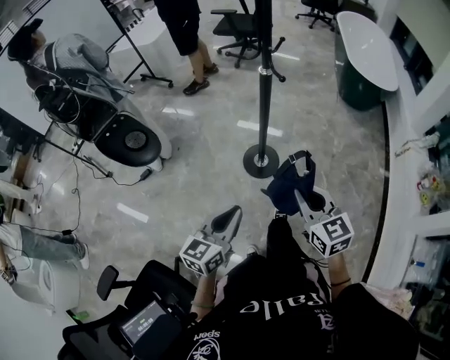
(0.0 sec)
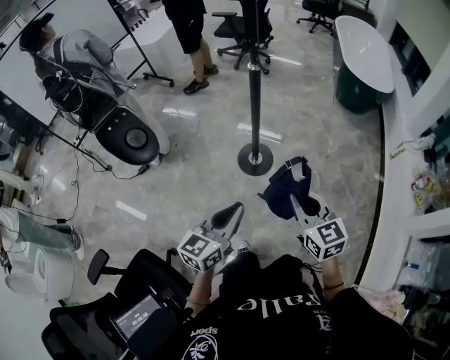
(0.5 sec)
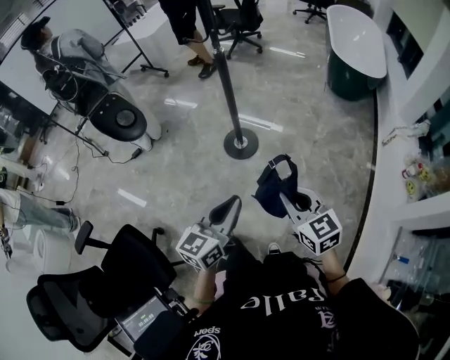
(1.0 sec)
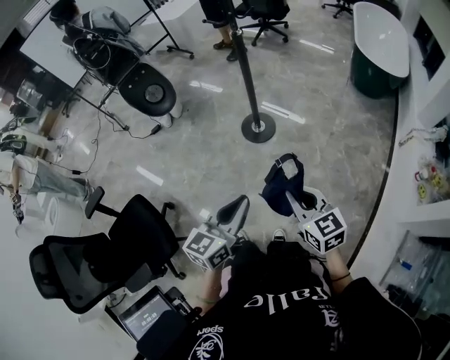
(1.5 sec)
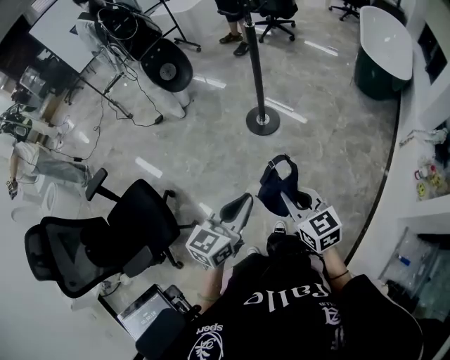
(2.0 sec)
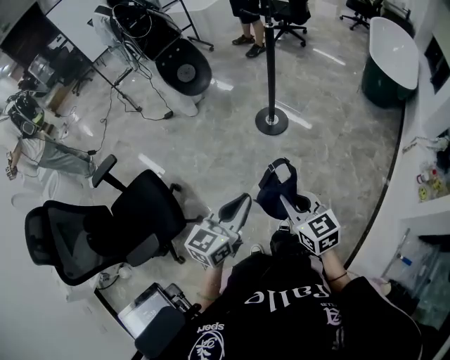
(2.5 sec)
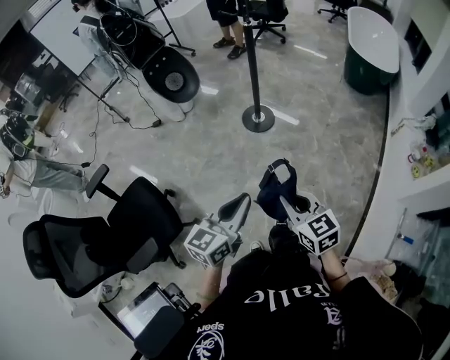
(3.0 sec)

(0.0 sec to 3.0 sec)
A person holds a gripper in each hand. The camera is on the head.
0.0 sec - 1.5 sec: The grippers both shift backward and to the right by approximately 35 cm.
1.5 sec - 3.0 sec: The two grippers go approximately 15 cm backward and to the left.

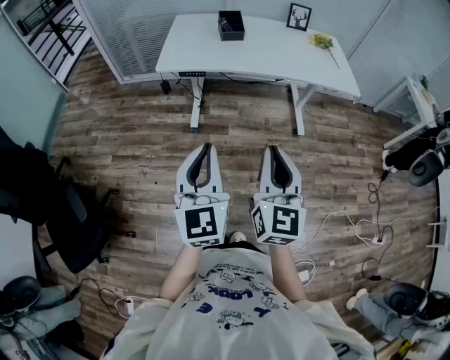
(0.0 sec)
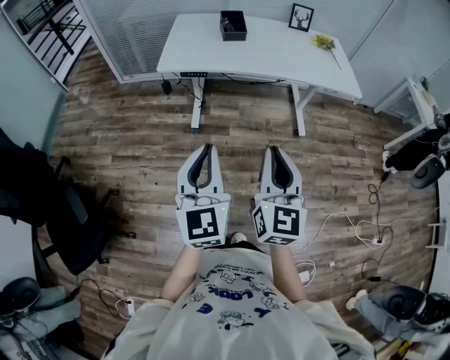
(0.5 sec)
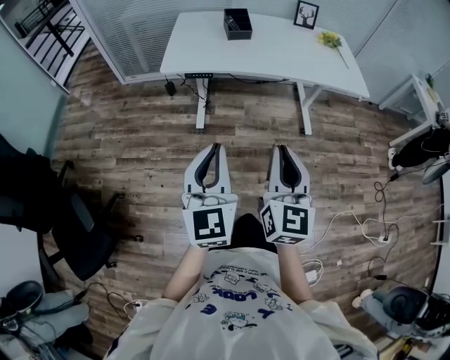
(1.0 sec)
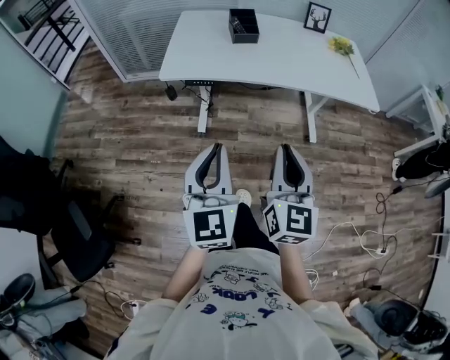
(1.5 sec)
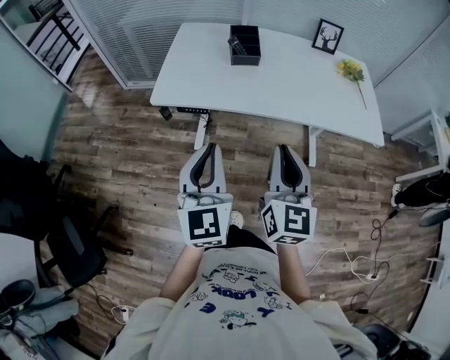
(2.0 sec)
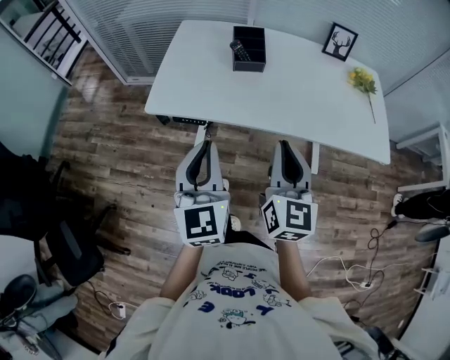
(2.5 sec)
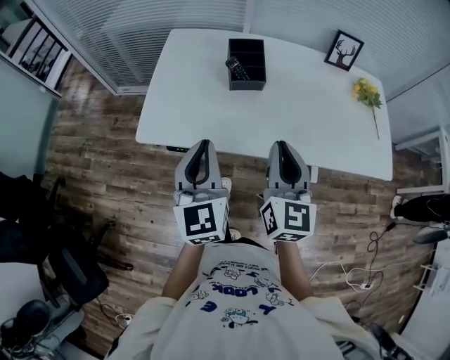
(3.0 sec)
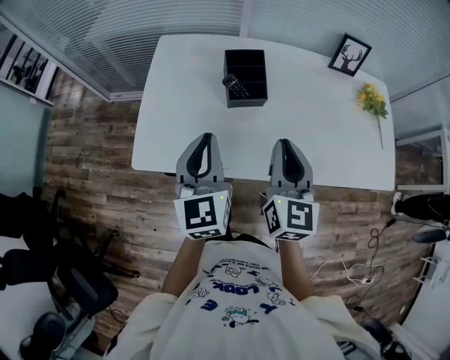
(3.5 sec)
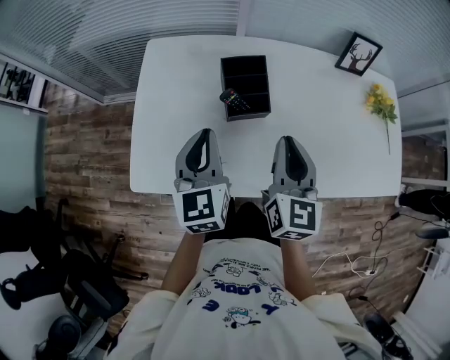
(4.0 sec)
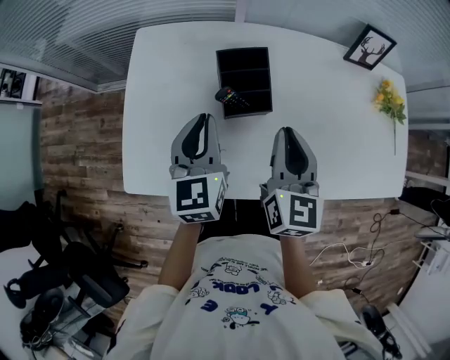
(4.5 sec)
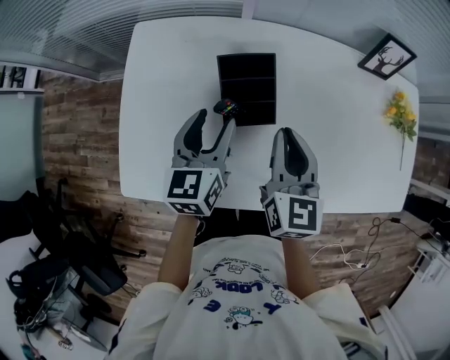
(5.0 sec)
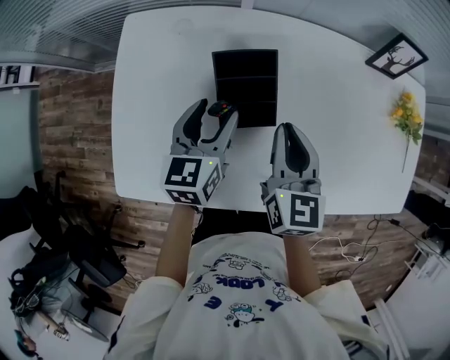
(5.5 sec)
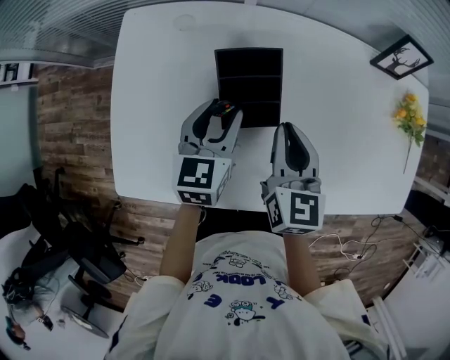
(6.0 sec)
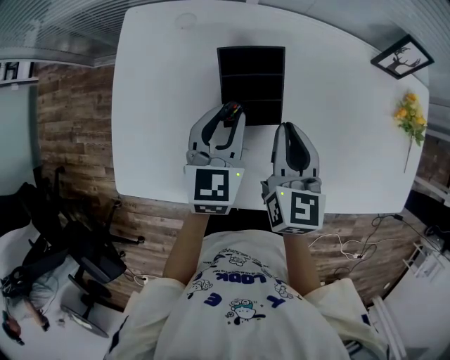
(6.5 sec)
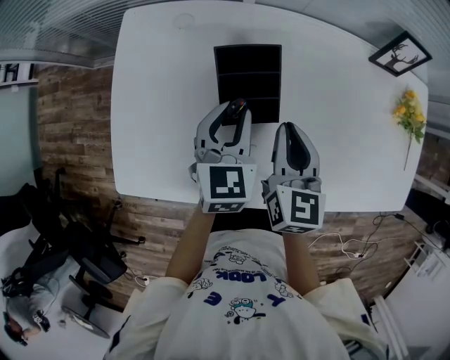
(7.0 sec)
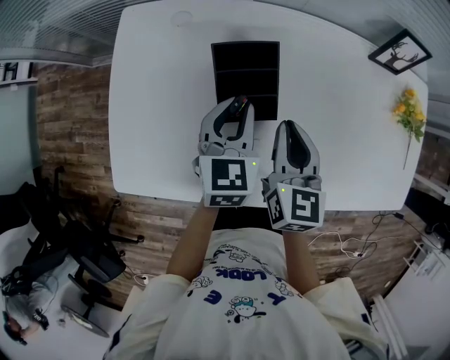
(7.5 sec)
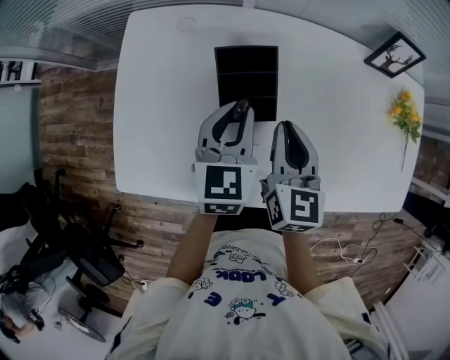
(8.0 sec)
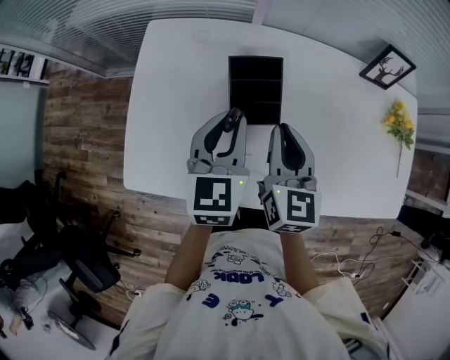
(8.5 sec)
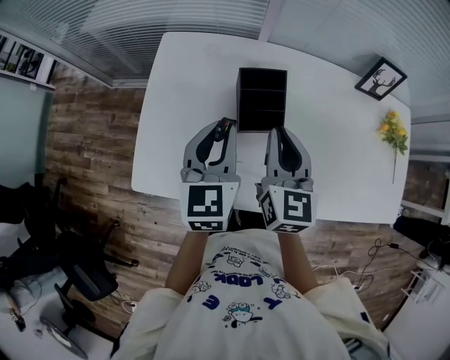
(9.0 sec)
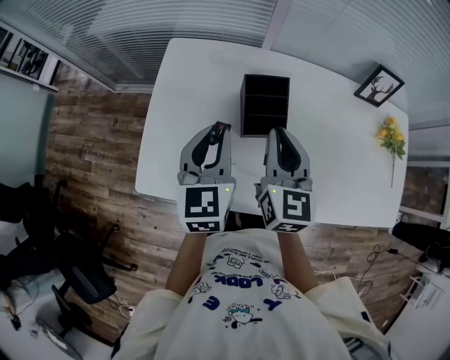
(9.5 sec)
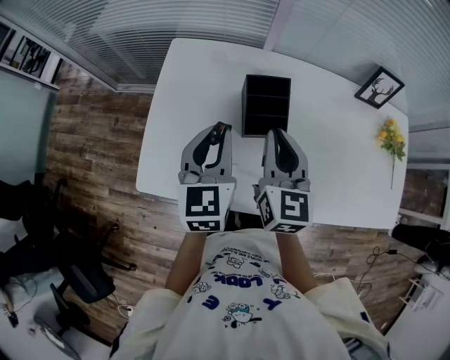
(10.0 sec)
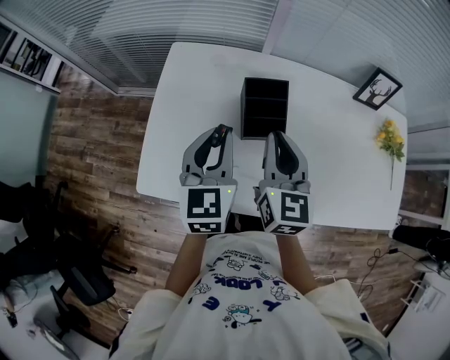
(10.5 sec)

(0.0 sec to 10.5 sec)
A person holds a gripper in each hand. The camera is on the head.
0.0 sec - 2.0 sec: Both grippers travel together forward, approximately 30 cm.
2.0 sec - 4.0 sec: The two grippers travel together, forward, approximately 50 cm.
4.0 sec - 6.5 sec: The left gripper travels forward, downward and to the right by roughly 20 cm, and opens, then closes again; the right gripper moves forward and downward, roughly 15 cm.
6.5 sec - 8.5 sec: The right gripper goes some 5 cm upward. Meanwhile the left gripper heads upward, covering about 10 cm.
8.5 sec - 10.5 sec: The left gripper shifts approximately 5 cm to the left. The right gripper goes some 5 cm upward.

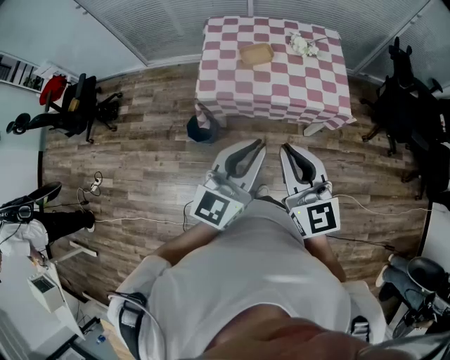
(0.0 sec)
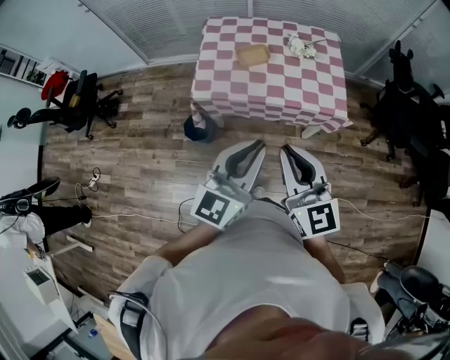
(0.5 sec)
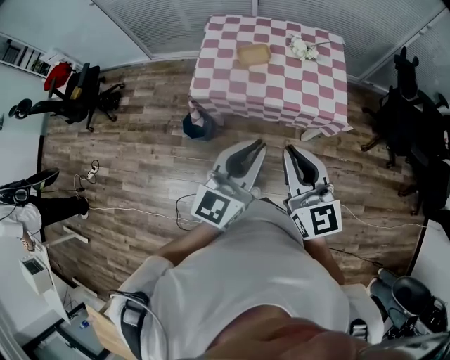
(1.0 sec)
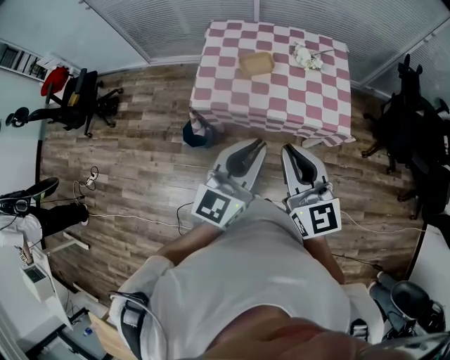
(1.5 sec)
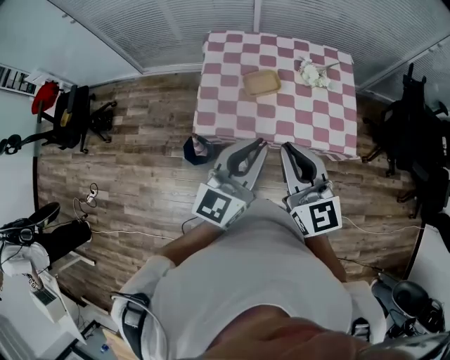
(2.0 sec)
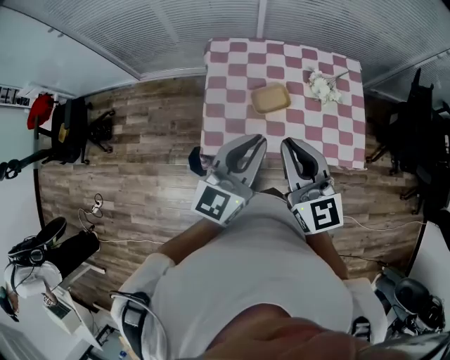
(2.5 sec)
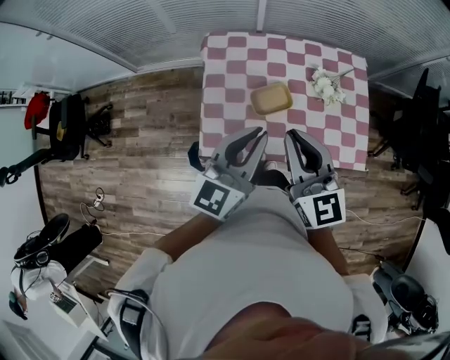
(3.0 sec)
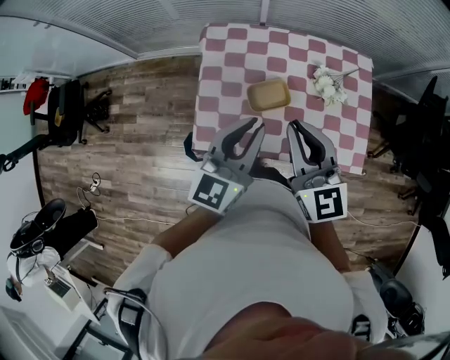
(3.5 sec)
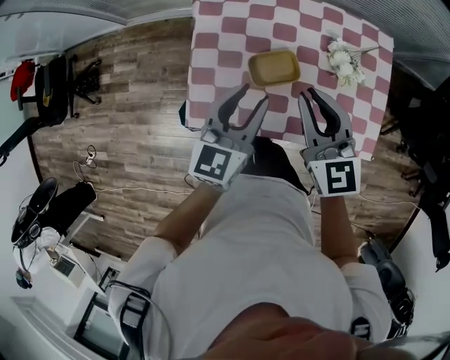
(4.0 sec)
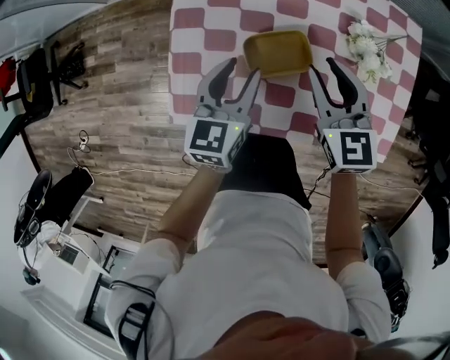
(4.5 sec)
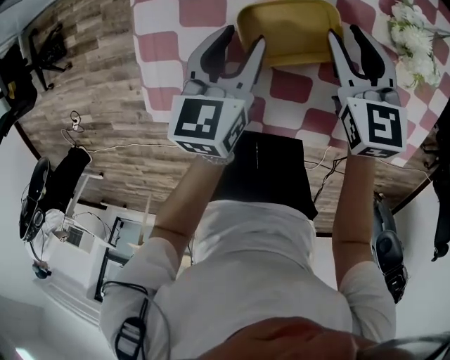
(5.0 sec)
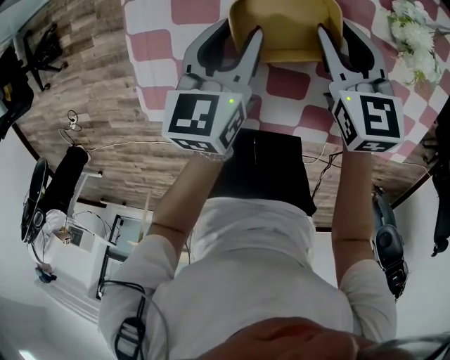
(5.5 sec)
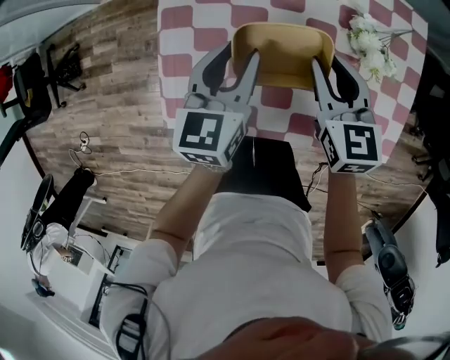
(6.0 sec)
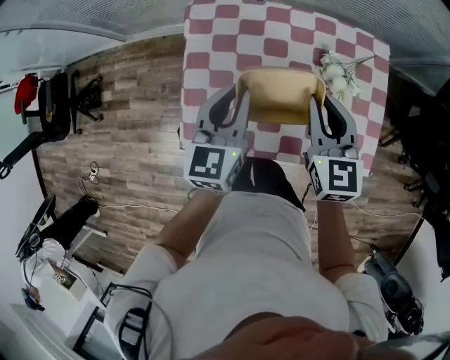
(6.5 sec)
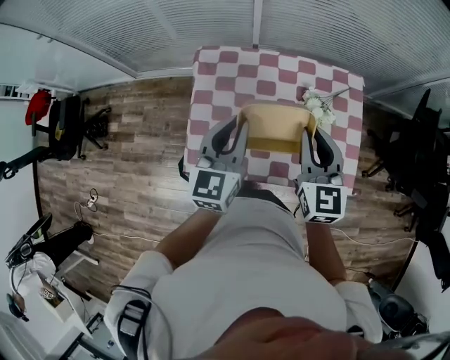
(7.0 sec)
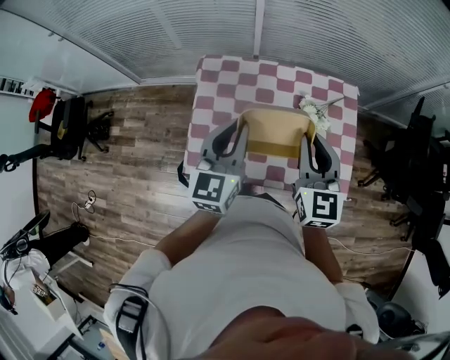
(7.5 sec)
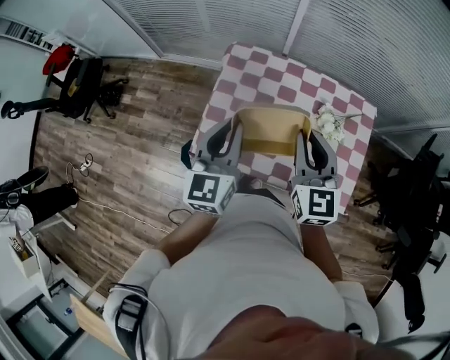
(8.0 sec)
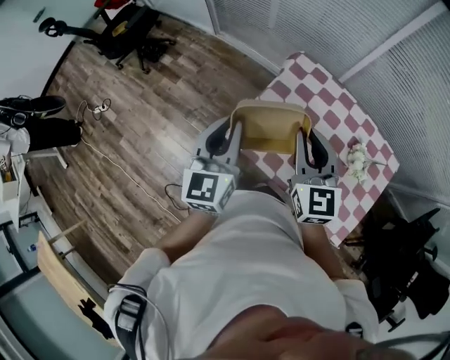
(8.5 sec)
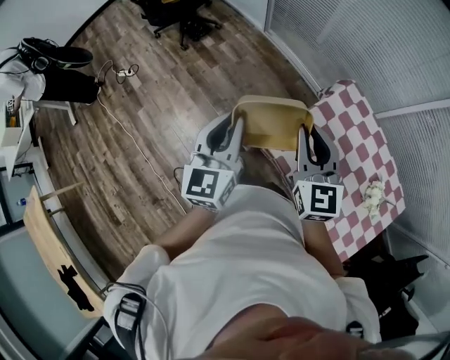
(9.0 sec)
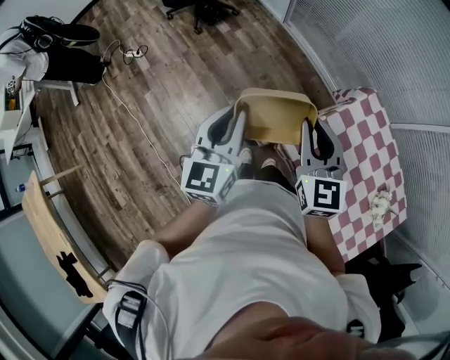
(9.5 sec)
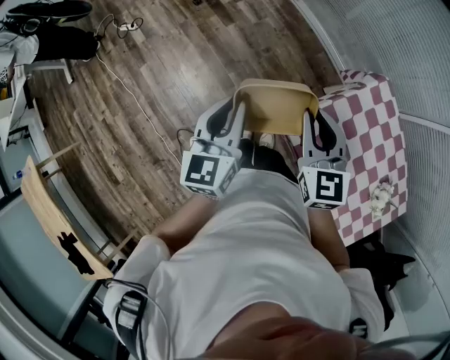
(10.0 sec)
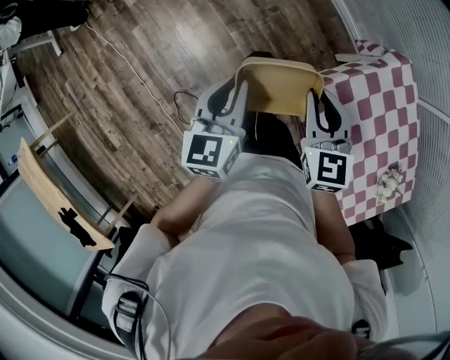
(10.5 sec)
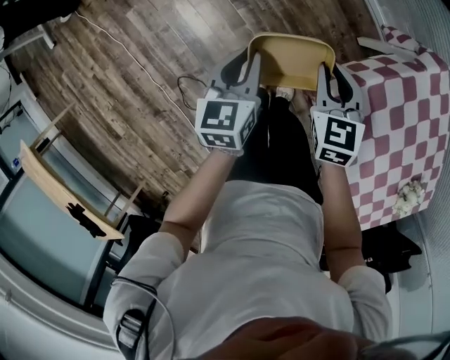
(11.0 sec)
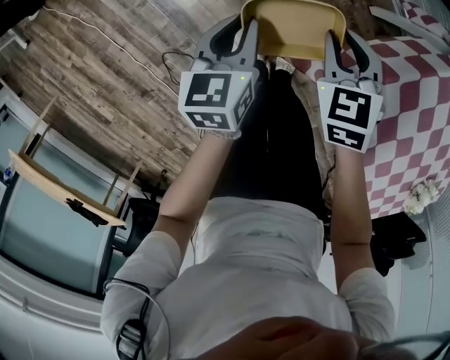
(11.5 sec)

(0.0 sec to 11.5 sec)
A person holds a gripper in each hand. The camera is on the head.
0.0 sec - 2.0 sec: The two grippers go some 20 cm forward.
2.0 sec - 4.0 sec: The grippers both shift forward and downward by roughly 30 cm. The left gripper opens its fingers.
4.0 sec - 6.0 sec: Both grippers move downward and forward, approximately 20 cm.
6.0 sec - 7.5 sec: The grippers both shift upward by roughly 25 cm. The left gripper turns by some 20 degrees, and closes up. The right gripper turns by some 20 degrees.
7.5 sec - 9.5 sec: The pair of grippers is taken roughly 50 cm. The left gripper rotates about 50 degrees; the right gripper changes its angle by about 50 degrees.
9.5 sec - 11.5 sec: Both grippers move downward, approximately 40 cm. The left gripper points its fingers about 30 degrees further downward. The right gripper tilts its fingers some 40 degrees downward.

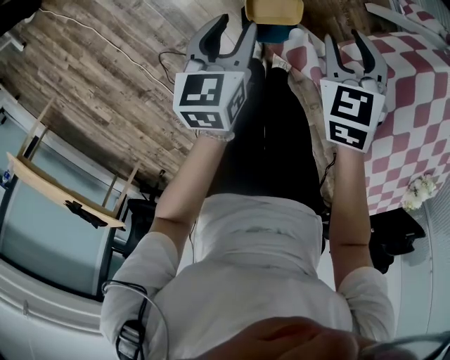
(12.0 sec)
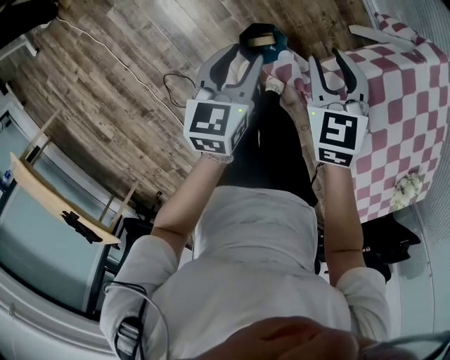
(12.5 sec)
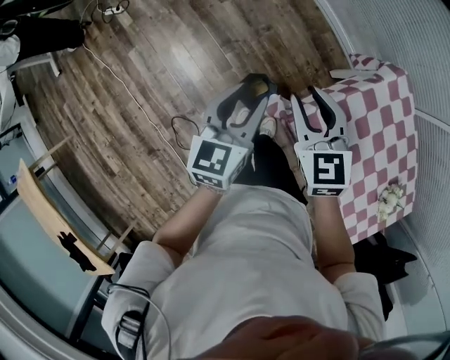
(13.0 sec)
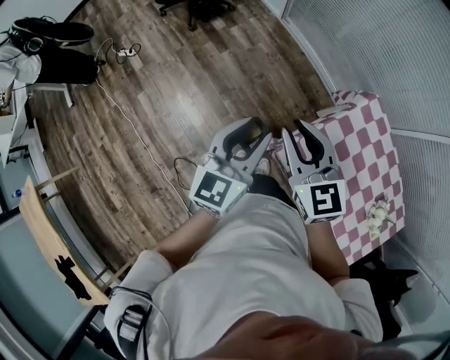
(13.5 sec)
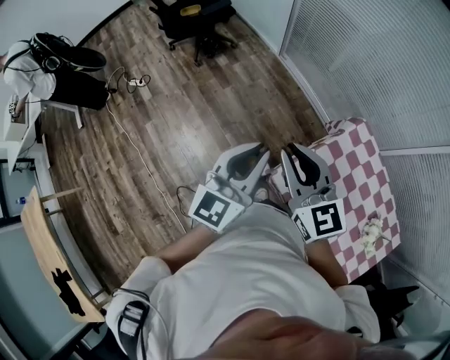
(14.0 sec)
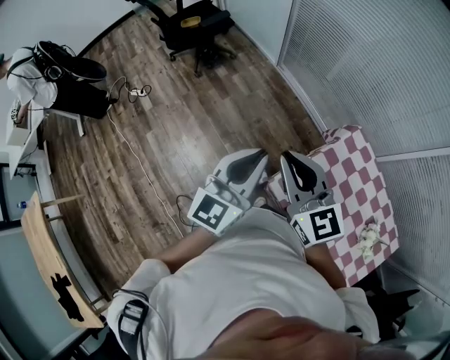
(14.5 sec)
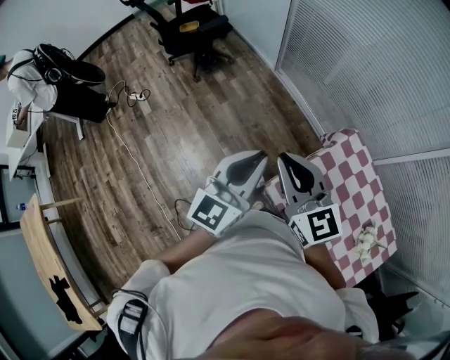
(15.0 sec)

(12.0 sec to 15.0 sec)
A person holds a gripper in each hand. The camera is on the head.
12.0 sec - 13.5 sec: The two grippers go approximately 40 cm upward. The right gripper points its fingers about 40 degrees further upward. Meanwhile the left gripper points its fingers roughly 30 degrees further upward.
13.5 sec - 15.0 sec: The two grippers go roughly 10 cm upward. The left gripper closes.
